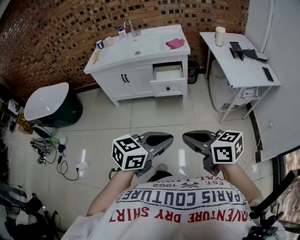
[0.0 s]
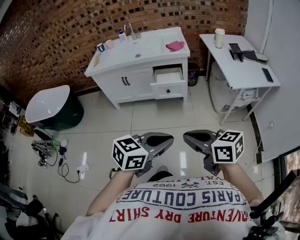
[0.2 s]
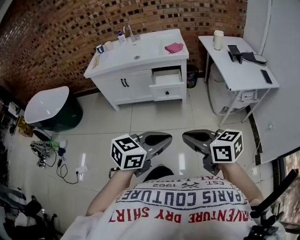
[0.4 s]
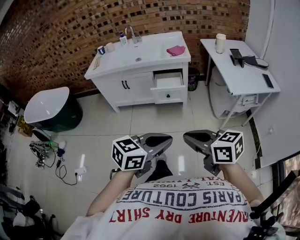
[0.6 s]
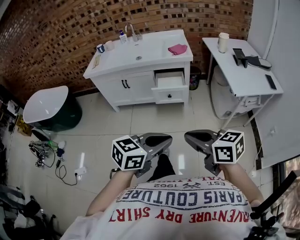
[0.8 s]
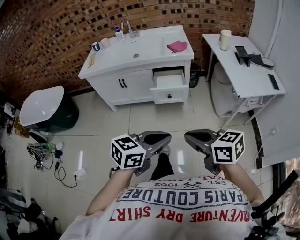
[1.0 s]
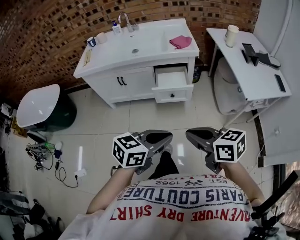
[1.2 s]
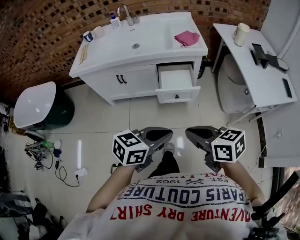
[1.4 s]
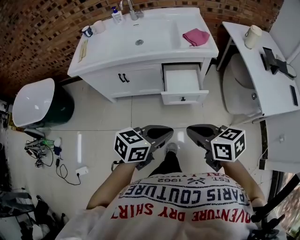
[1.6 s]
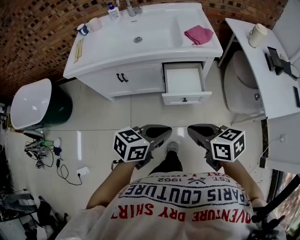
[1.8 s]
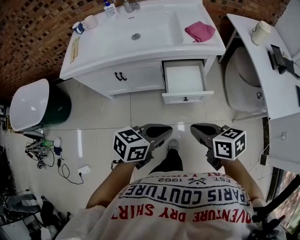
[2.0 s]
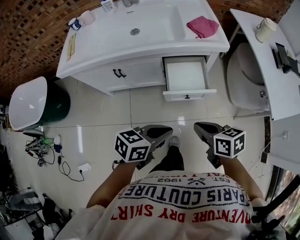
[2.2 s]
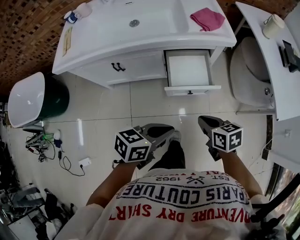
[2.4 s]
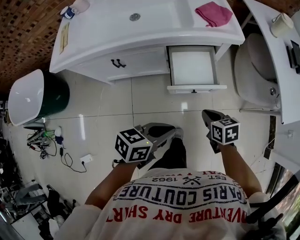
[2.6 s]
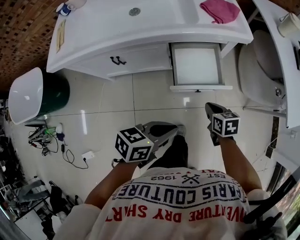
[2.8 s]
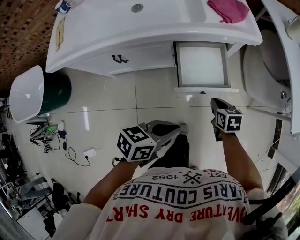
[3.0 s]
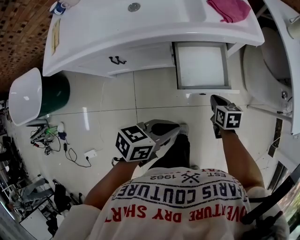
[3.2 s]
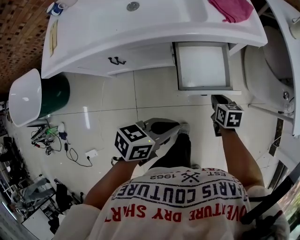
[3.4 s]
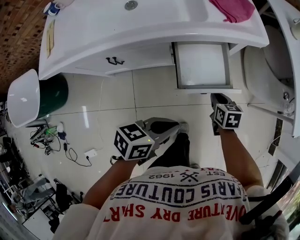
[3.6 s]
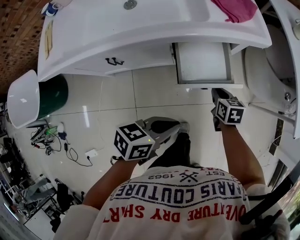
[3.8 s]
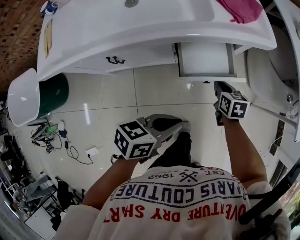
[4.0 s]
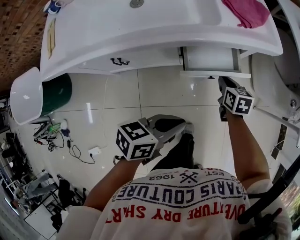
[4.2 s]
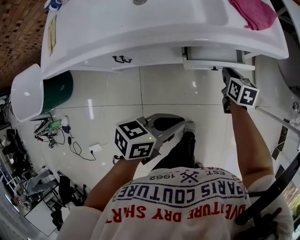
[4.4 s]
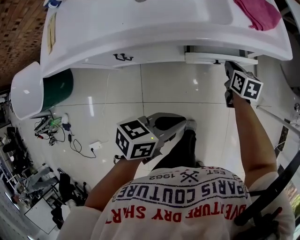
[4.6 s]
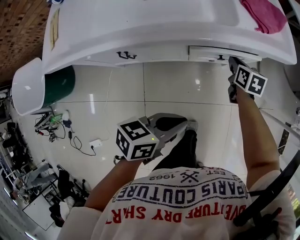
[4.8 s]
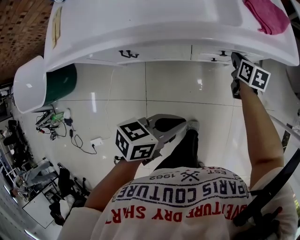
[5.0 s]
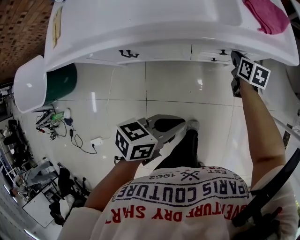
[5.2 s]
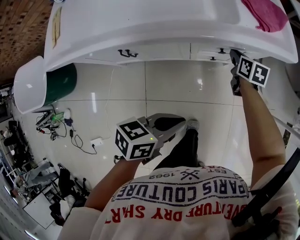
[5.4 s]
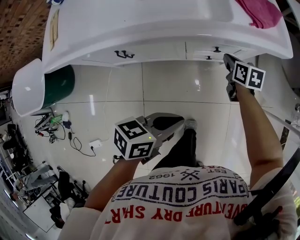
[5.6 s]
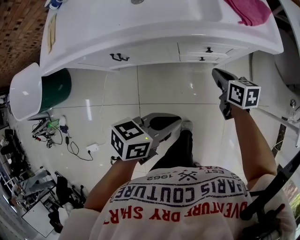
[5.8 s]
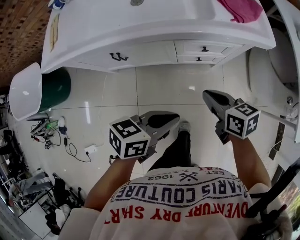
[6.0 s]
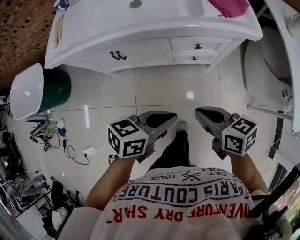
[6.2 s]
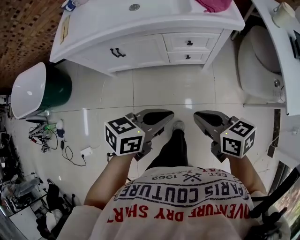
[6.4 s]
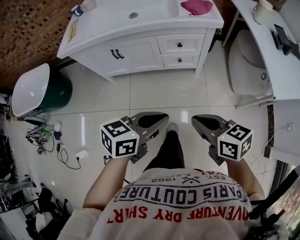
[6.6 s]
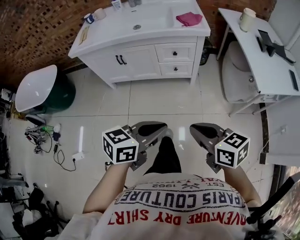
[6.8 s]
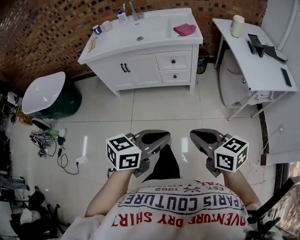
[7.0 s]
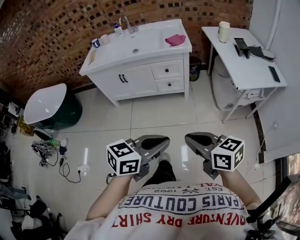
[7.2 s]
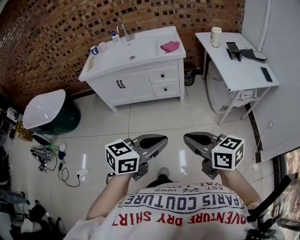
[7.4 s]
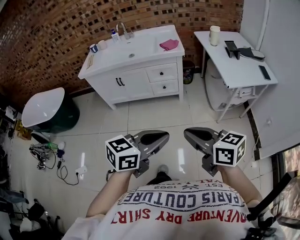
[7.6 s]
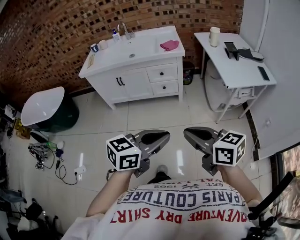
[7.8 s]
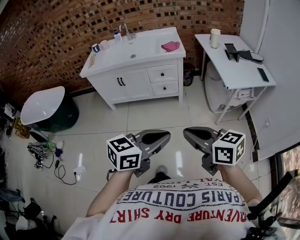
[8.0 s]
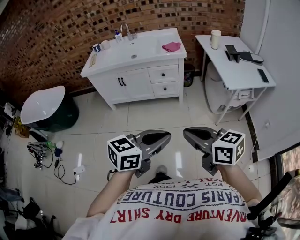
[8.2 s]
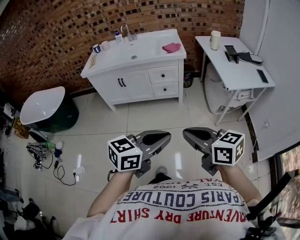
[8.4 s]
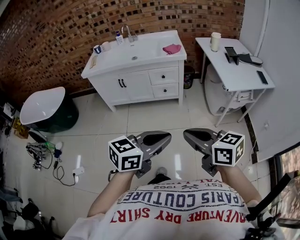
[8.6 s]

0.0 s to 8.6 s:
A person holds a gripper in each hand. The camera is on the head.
0.0 to 1.4 s: The grippers both shift forward by approximately 25 cm.
1.4 to 2.8 s: The left gripper goes about 25 cm forward, downward and to the left, and swivels about 20 degrees. Meanwhile the right gripper goes approximately 40 cm downward and forward, and rotates about 30 degrees.
2.8 to 4.4 s: The left gripper is displaced forward and to the left by roughly 10 cm. Meanwhile the right gripper heads forward, covering about 20 cm.
4.4 to 5.8 s: The right gripper shifts by some 5 cm.
5.8 to 7.2 s: Both grippers are carried approximately 60 cm. The right gripper rotates about 30 degrees. The left gripper turns by approximately 30 degrees.
7.2 to 8.6 s: The left gripper moves backward, roughly 5 cm, while the right gripper heads backward and upward, covering about 10 cm.

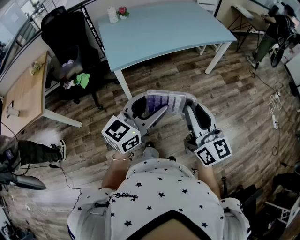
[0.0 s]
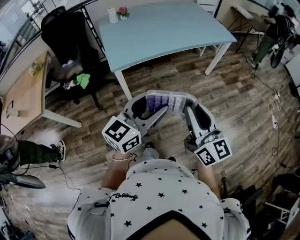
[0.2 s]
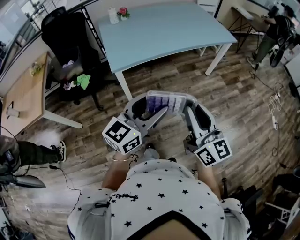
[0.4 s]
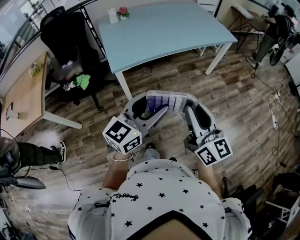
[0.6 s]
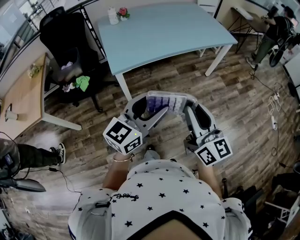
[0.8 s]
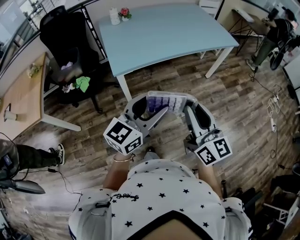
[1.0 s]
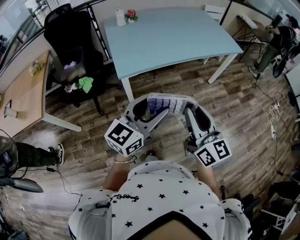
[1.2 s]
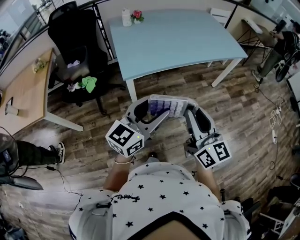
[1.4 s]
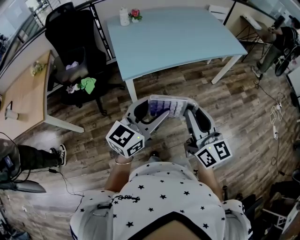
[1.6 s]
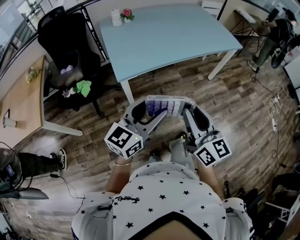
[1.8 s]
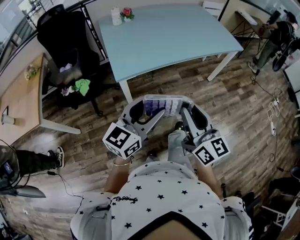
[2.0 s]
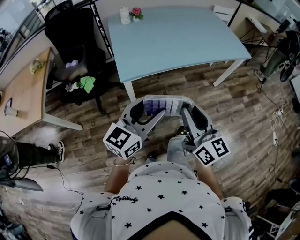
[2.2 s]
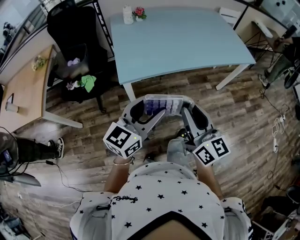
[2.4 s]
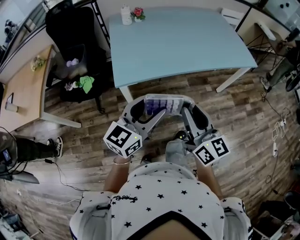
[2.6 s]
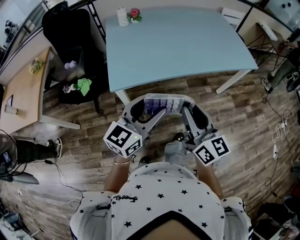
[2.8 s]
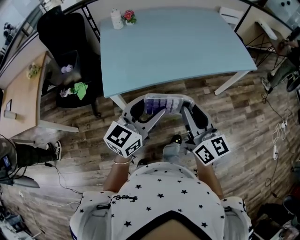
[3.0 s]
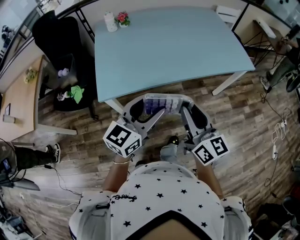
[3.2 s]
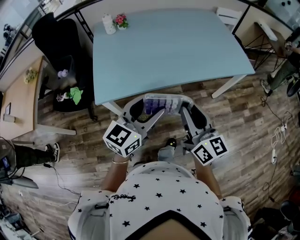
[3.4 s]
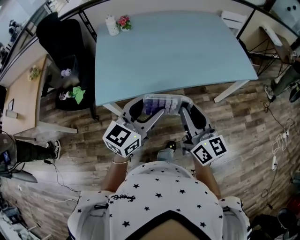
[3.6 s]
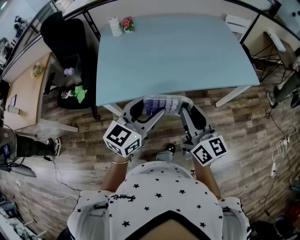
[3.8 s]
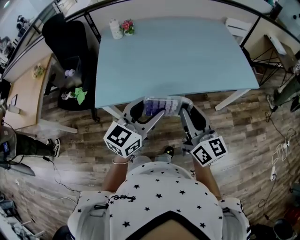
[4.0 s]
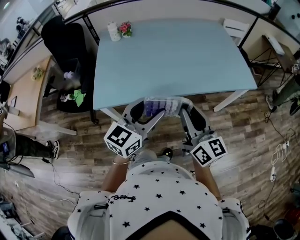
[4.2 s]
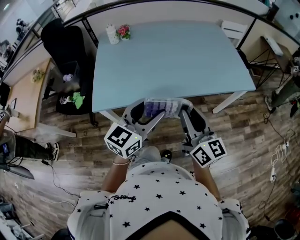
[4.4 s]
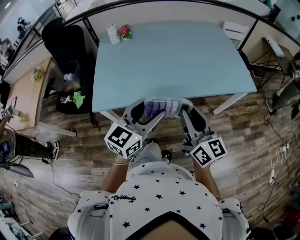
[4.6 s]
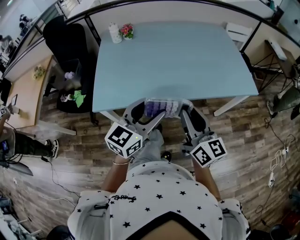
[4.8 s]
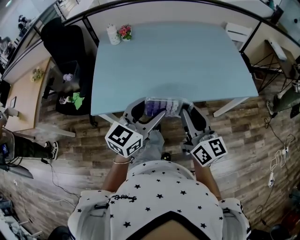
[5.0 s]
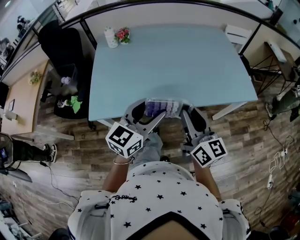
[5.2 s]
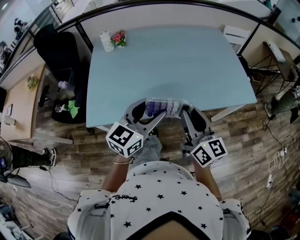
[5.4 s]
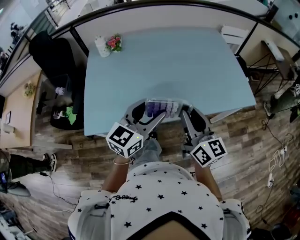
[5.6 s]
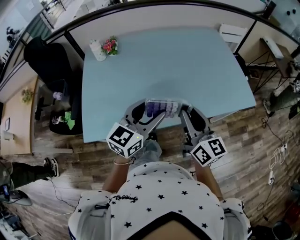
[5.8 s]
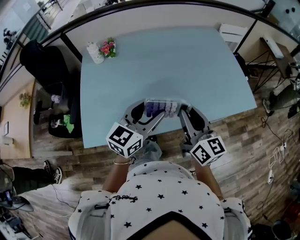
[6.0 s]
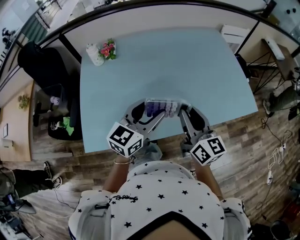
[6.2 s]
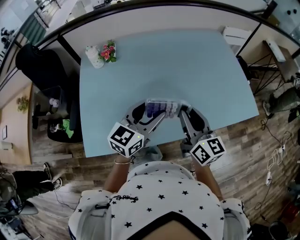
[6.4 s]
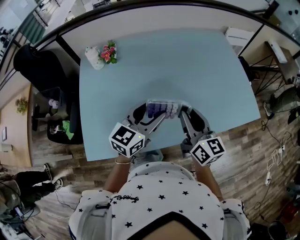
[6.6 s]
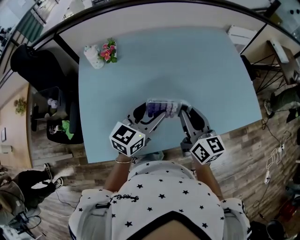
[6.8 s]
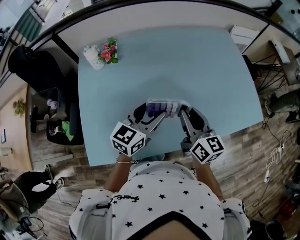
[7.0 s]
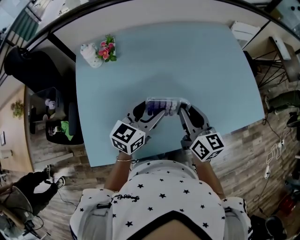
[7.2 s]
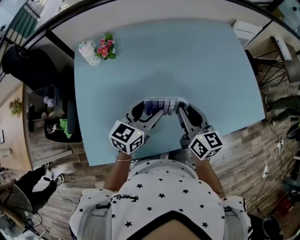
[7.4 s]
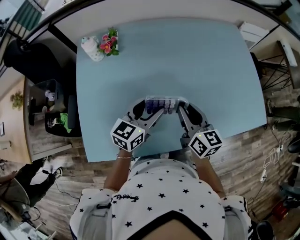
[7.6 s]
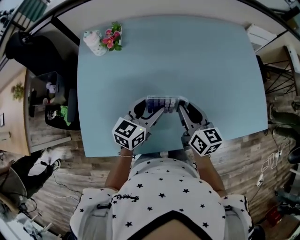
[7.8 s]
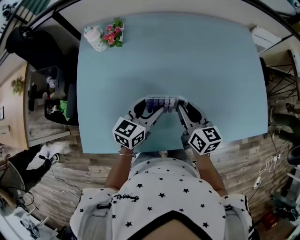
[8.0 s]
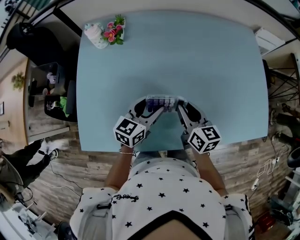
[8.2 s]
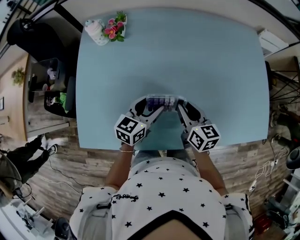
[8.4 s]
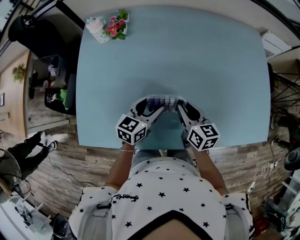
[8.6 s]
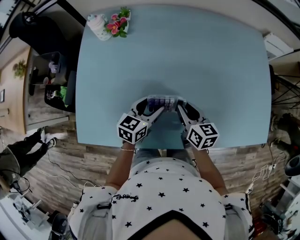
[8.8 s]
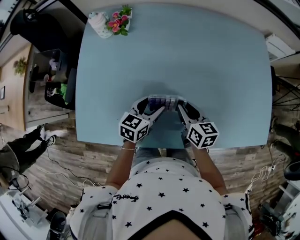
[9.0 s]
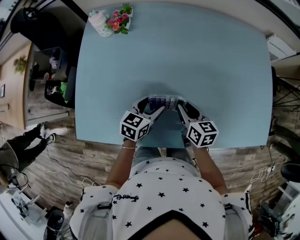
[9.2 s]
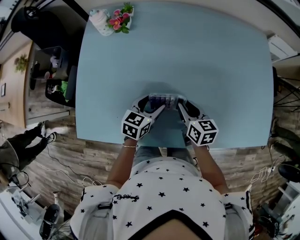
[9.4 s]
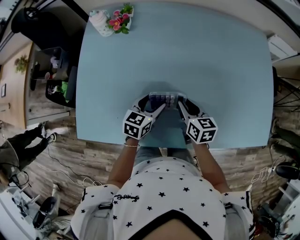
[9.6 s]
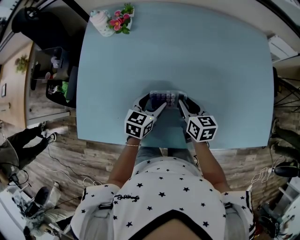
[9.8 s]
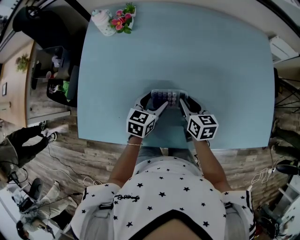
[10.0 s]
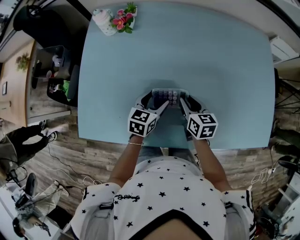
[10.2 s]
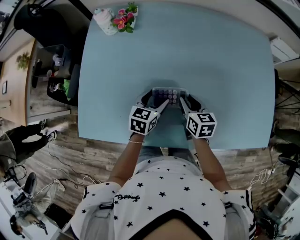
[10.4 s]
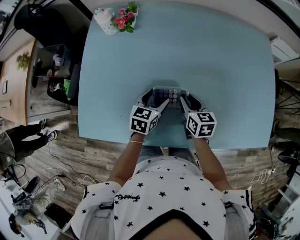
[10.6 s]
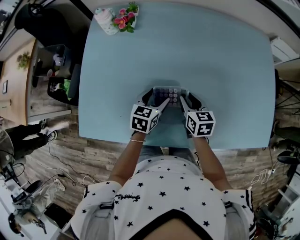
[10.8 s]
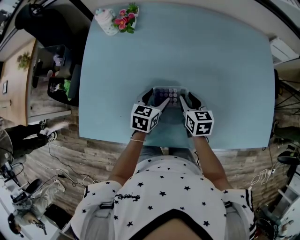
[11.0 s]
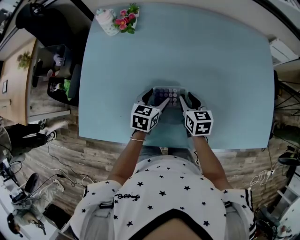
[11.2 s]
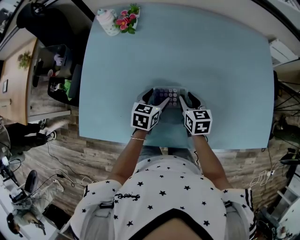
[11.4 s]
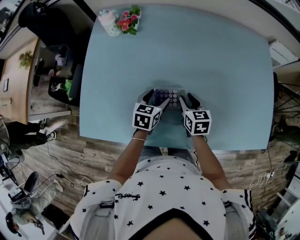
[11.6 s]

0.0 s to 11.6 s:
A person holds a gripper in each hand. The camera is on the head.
0.0 to 1.4 s: Both grippers travel together to the left and forward, approximately 10 cm.
1.4 to 2.8 s: Both grippers travel together forward, about 15 cm.
2.8 to 4.4 s: Both grippers move to the right and forward, about 20 cm.
4.4 to 5.8 s: The two grippers go approximately 20 cm forward.
5.8 to 7.2 s: The grippers both shift forward, to the left and downward by about 20 cm.
7.2 to 8.8 s: Both grippers travel together downward, roughly 15 cm. The right gripper changes its angle by approximately 30 degrees. Meanwhile the left gripper turns by some 20 degrees.
8.8 to 11.6 s: The grippers make only small movements.

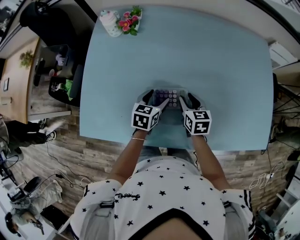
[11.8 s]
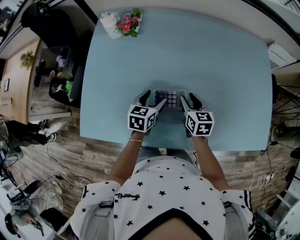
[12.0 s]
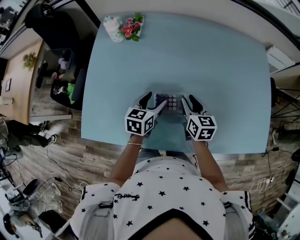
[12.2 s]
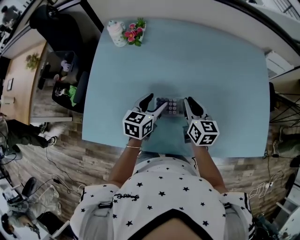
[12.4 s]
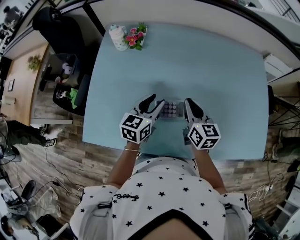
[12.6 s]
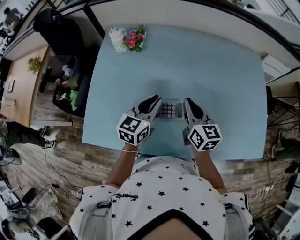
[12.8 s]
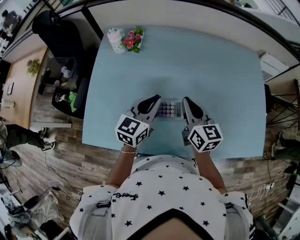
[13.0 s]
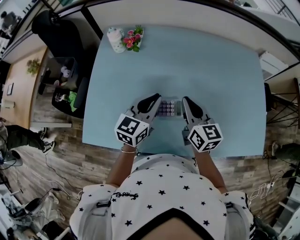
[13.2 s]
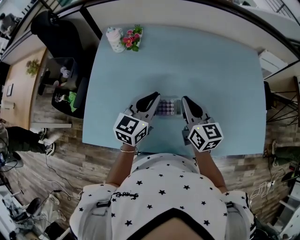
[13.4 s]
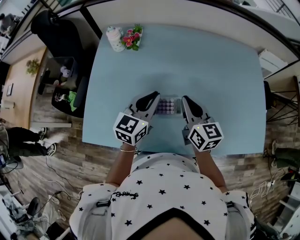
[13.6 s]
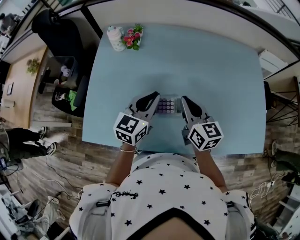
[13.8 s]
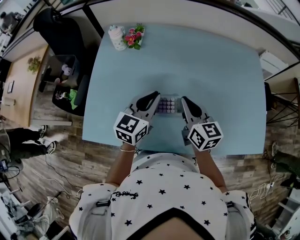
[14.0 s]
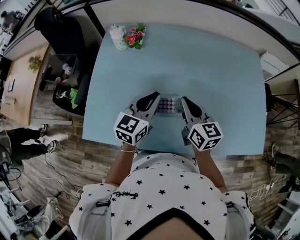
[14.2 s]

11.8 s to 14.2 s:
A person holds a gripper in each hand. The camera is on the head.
11.8 to 13.0 s: Both grippers travel together upward, approximately 20 cm. The left gripper changes its angle by approximately 30 degrees, and closes its fingers, while the right gripper changes its angle by some 30 degrees, and closes.
13.0 to 14.2 s: The grippers move only a little.

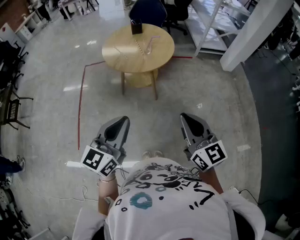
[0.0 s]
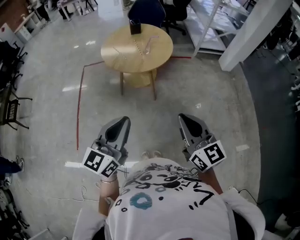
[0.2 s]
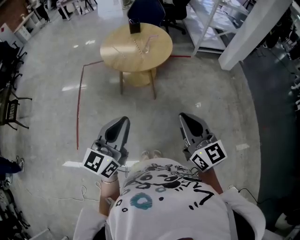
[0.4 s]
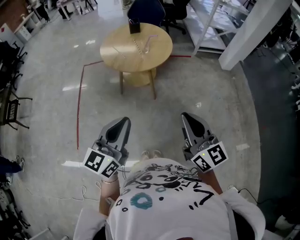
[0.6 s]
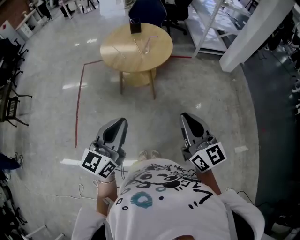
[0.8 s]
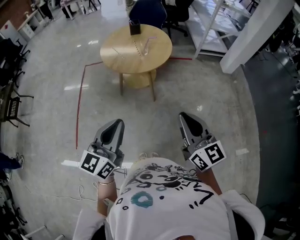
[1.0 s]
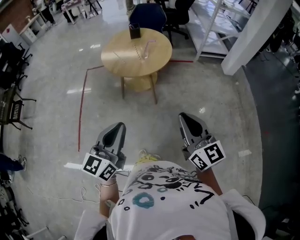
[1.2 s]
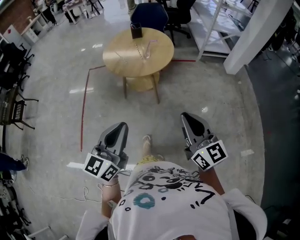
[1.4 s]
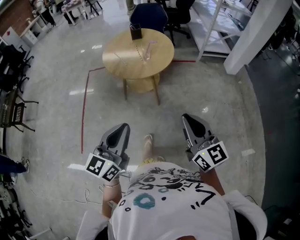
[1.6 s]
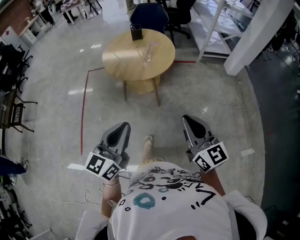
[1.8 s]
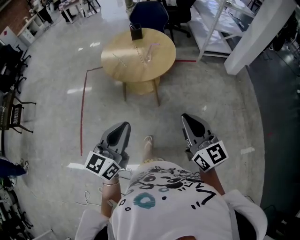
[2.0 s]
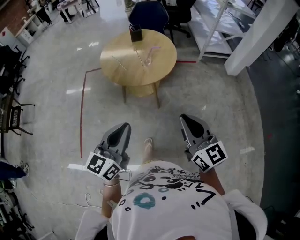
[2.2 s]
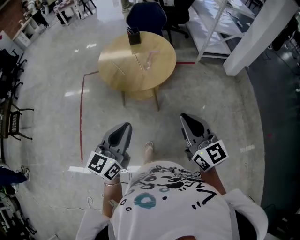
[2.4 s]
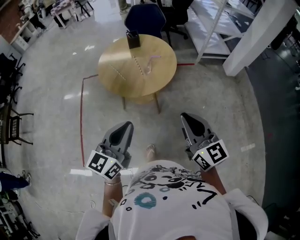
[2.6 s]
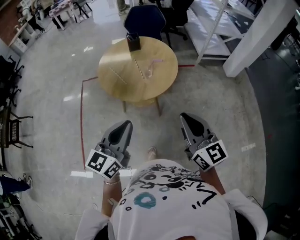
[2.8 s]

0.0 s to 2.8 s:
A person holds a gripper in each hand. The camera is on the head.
0.0 to 1.4 s: The grippers move only a little.
1.4 to 2.8 s: The two grippers go roughly 20 cm forward.
